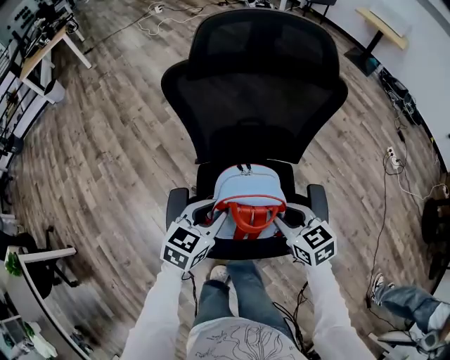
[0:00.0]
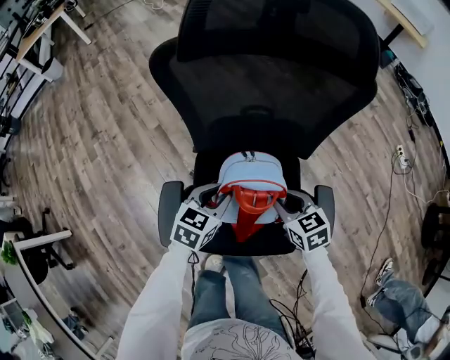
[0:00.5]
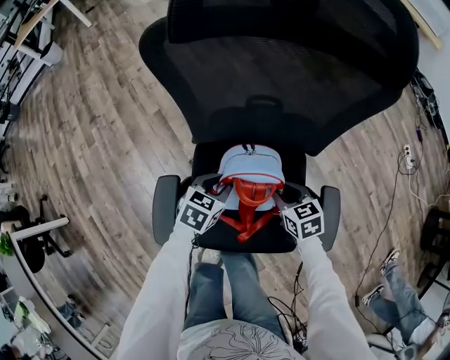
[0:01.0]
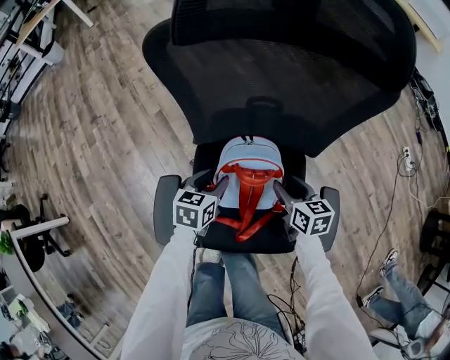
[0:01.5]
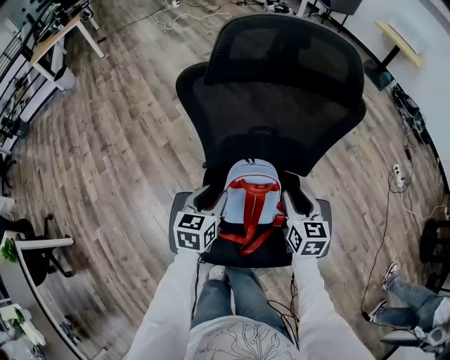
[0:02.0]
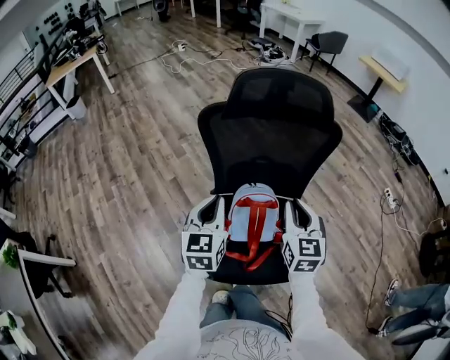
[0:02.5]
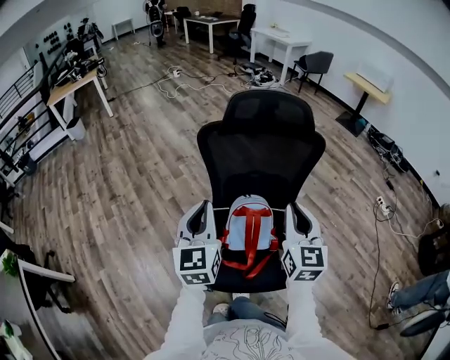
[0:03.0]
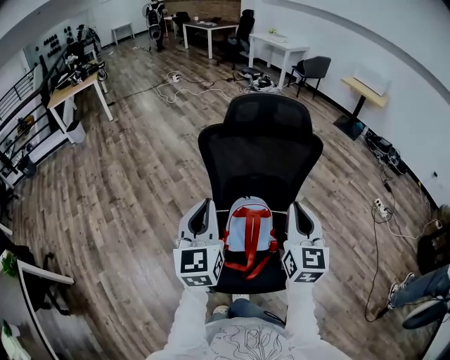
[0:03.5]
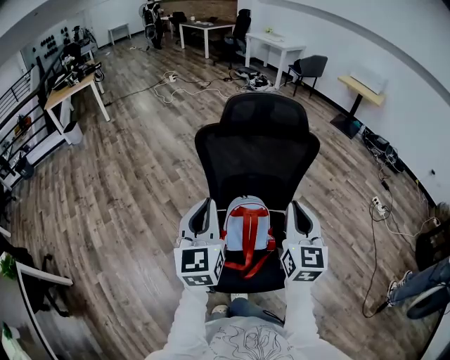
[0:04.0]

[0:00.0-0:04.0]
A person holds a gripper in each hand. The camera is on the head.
0:00.0 to 0:02.0: The two grippers go approximately 10 cm forward. The right gripper goes downward and returns, some 20 cm each way, and turns by roughly 30 degrees. Meanwhile the left gripper reaches some 20 cm downward, then returns, and turns by some 20 degrees.
0:02.0 to 0:04.0: The right gripper travels upward and backward by about 30 cm, turns by approximately 30 degrees, and closes, while the left gripper shifts roughly 30 cm upward, points its fingers roughly 30 degrees further upward, and closes its fingers.

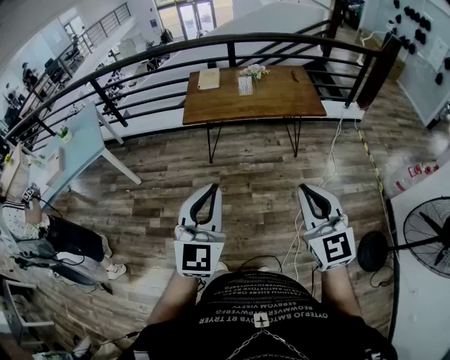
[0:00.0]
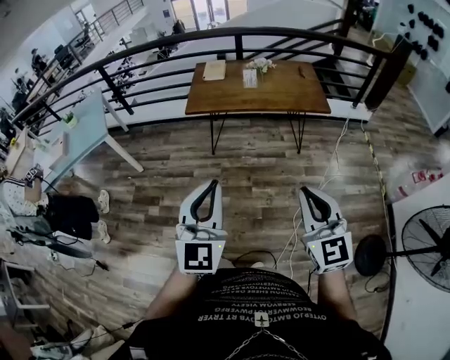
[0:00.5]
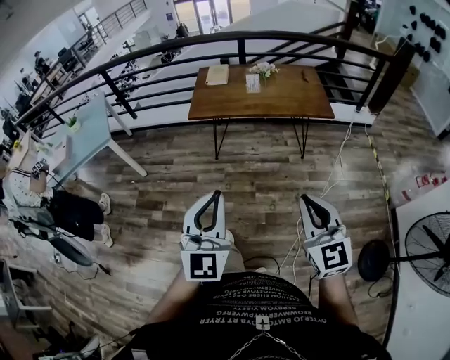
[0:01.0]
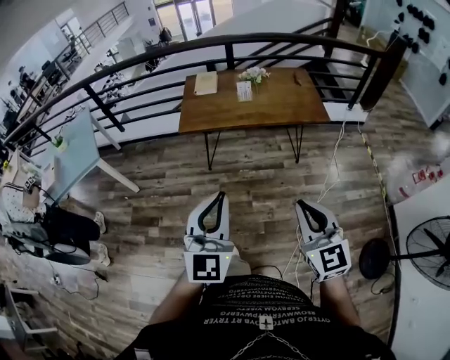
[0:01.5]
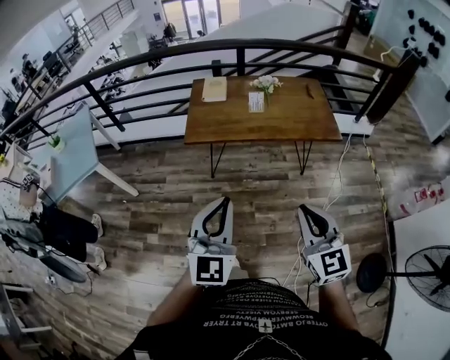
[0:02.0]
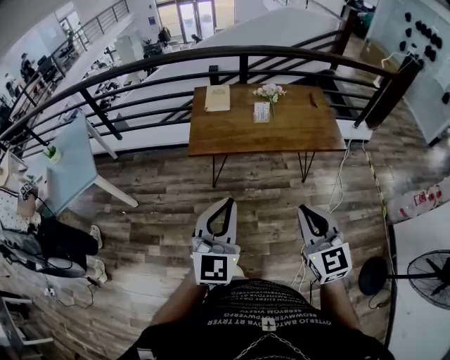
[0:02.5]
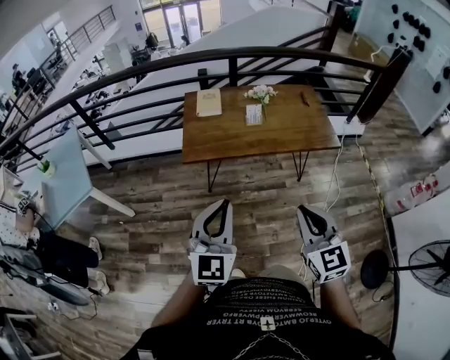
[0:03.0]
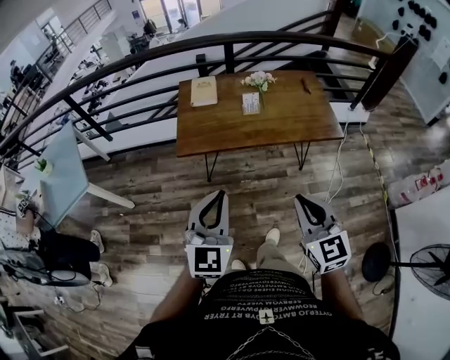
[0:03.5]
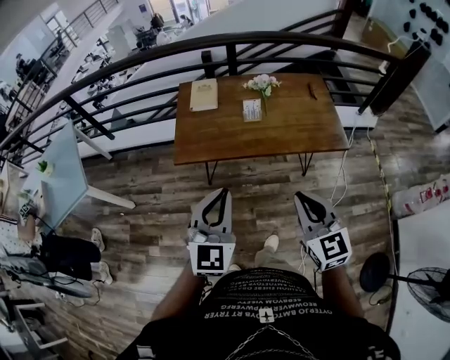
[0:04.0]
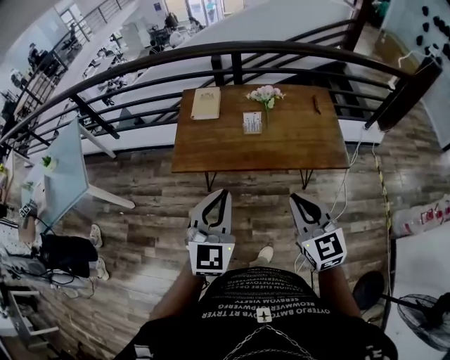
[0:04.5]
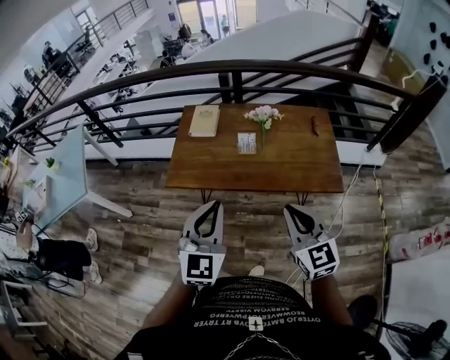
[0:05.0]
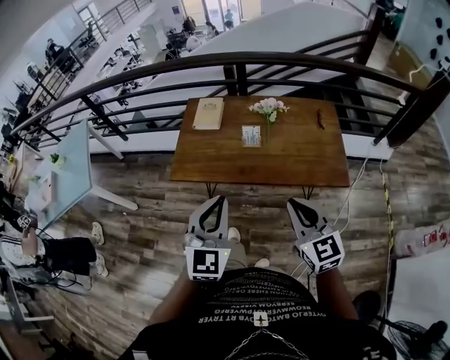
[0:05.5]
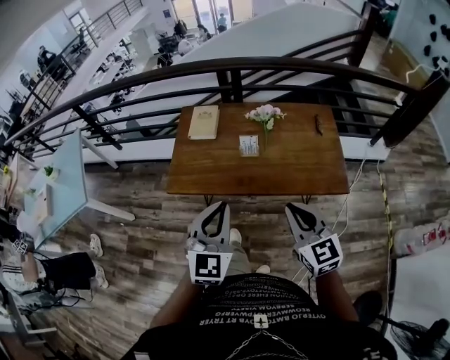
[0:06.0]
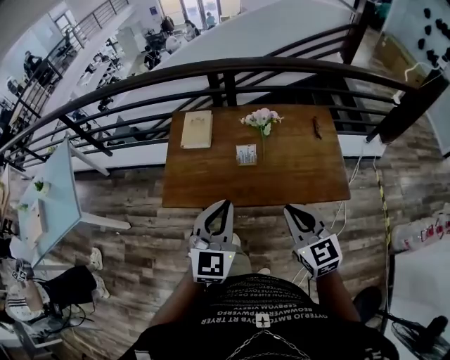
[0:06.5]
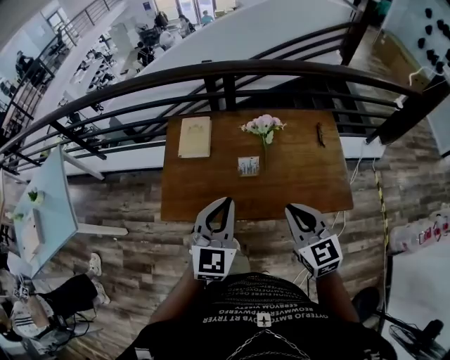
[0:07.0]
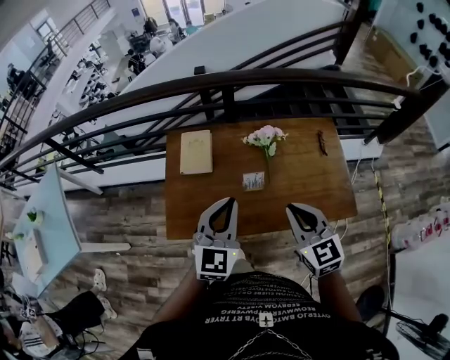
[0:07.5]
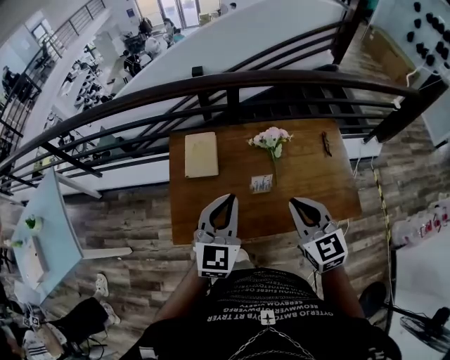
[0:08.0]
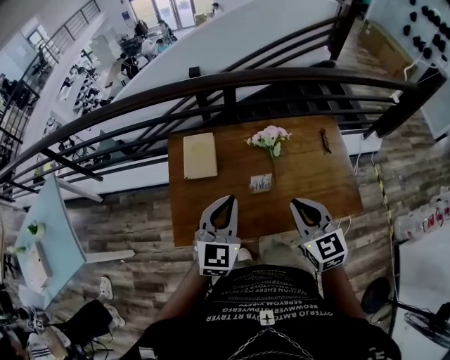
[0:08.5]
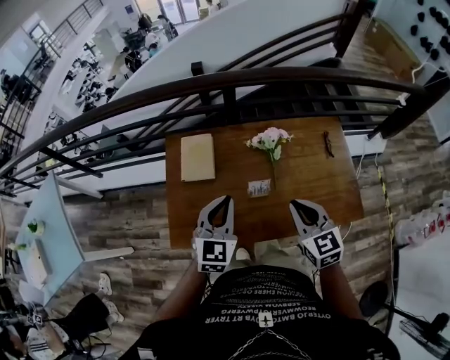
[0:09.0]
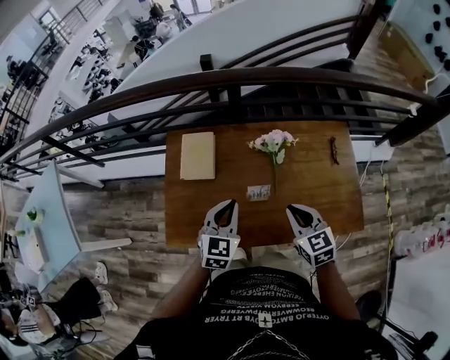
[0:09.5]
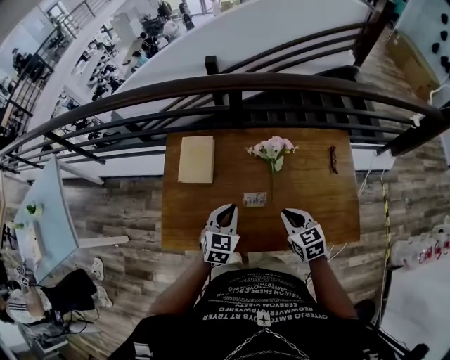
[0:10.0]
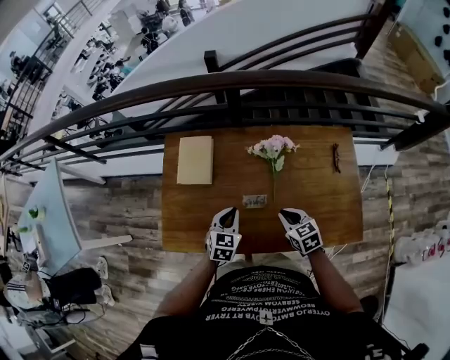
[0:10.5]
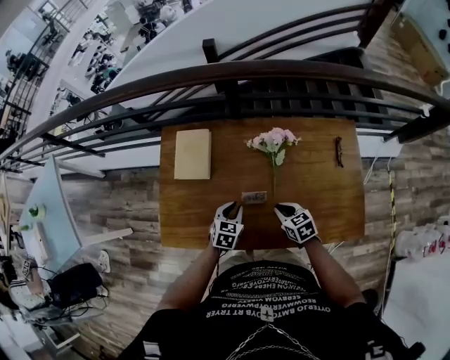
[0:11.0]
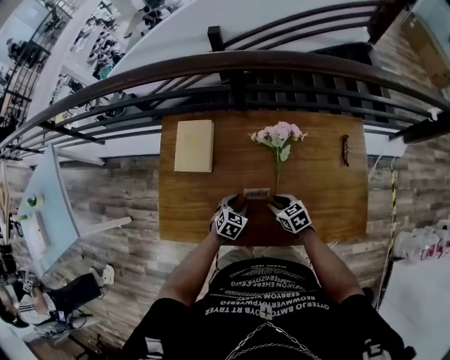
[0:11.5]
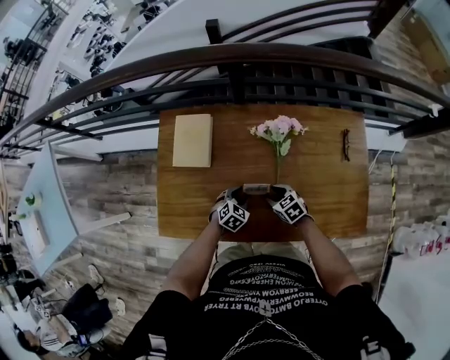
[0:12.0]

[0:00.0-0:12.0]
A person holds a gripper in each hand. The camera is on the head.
0:00.0 to 0:02.0: Both grippers travel together forward, approximately 20 cm.
0:02.0 to 0:04.0: Both grippers travel together forward, about 20 cm.
0:04.0 to 0:06.0: The grippers both shift forward and to the right by approximately 15 cm.
0:06.0 to 0:08.0: The two grippers go approximately 25 cm forward.
0:08.0 to 0:10.0: Both grippers move downward, approximately 20 cm. The left gripper rotates some 20 degrees. The right gripper turns by some 20 degrees.
0:10.0 to 0:12.0: The grippers both shift downward by about 20 cm. The right gripper turns by some 20 degrees, and opens up; the left gripper turns by roughly 30 degrees, and opens.

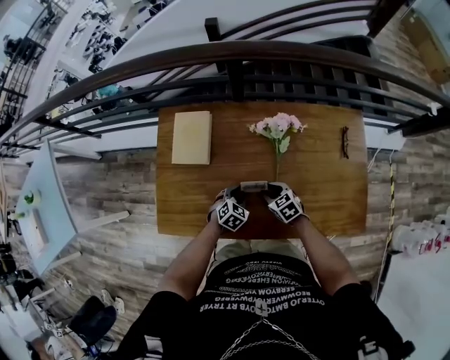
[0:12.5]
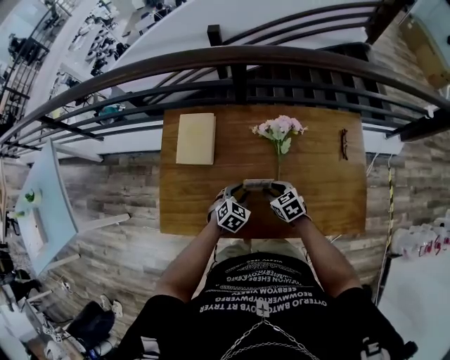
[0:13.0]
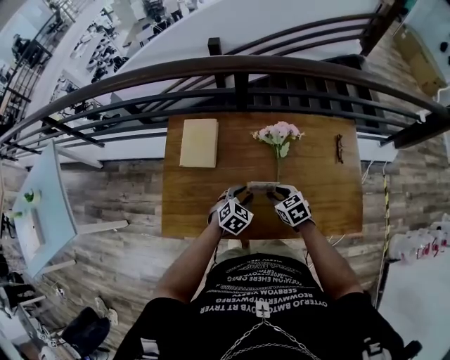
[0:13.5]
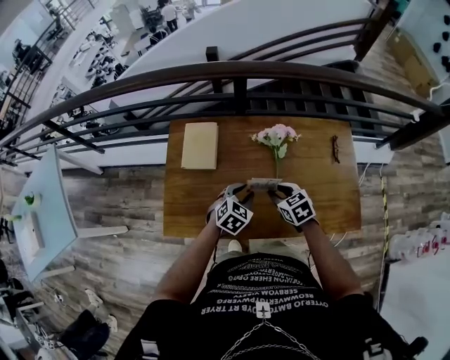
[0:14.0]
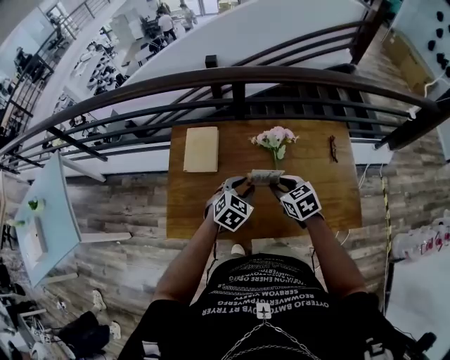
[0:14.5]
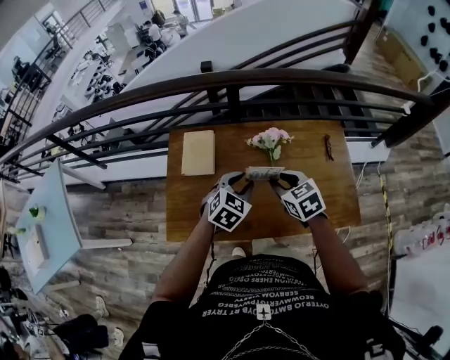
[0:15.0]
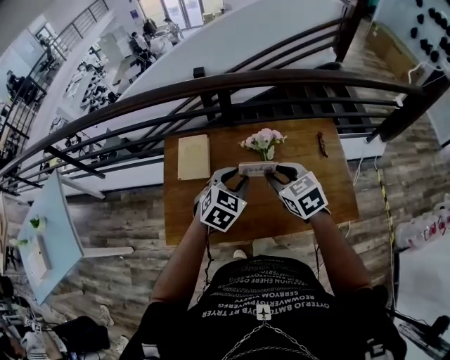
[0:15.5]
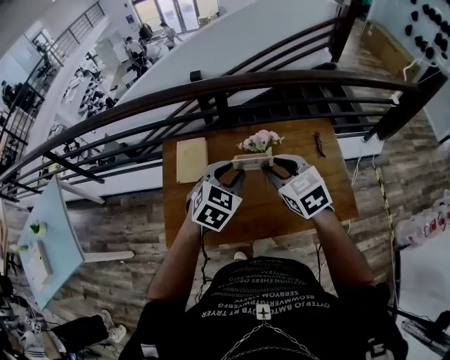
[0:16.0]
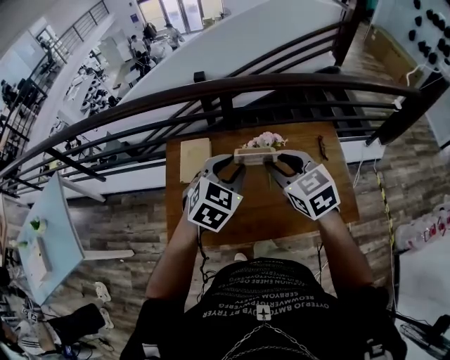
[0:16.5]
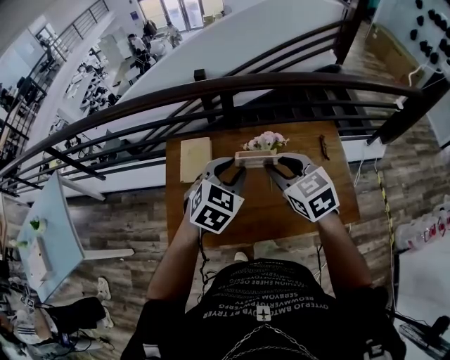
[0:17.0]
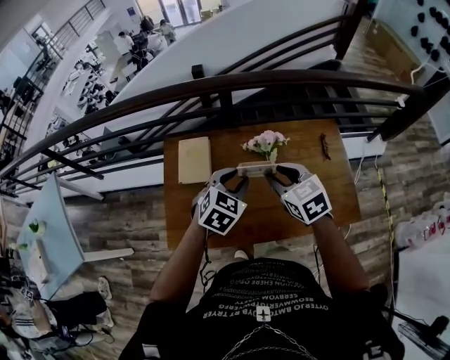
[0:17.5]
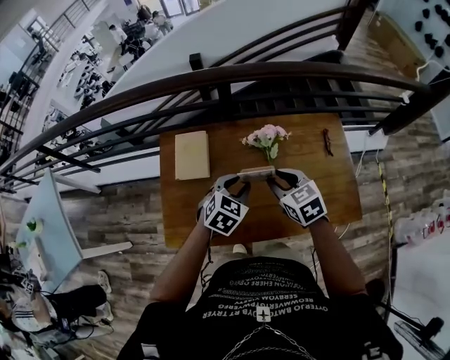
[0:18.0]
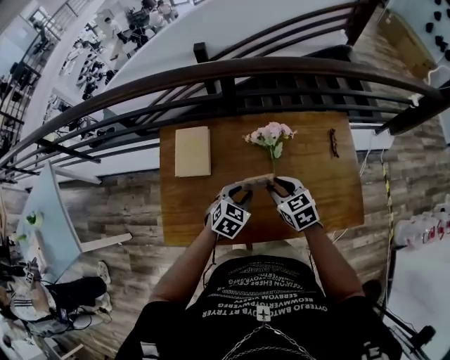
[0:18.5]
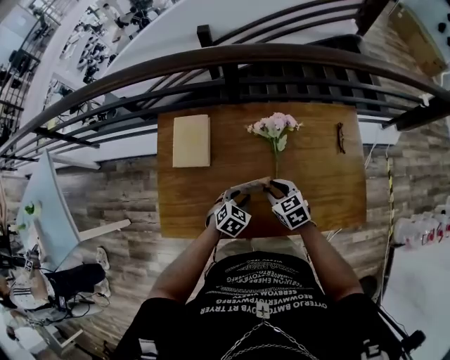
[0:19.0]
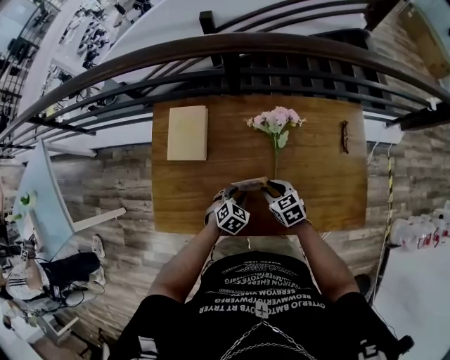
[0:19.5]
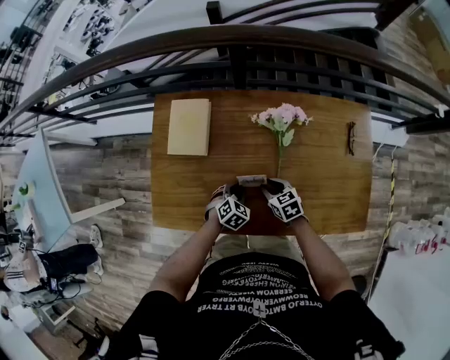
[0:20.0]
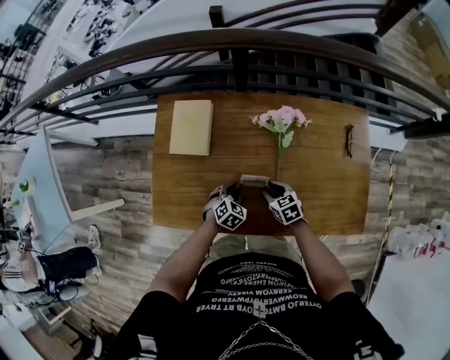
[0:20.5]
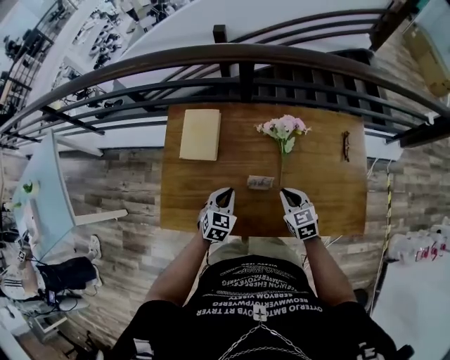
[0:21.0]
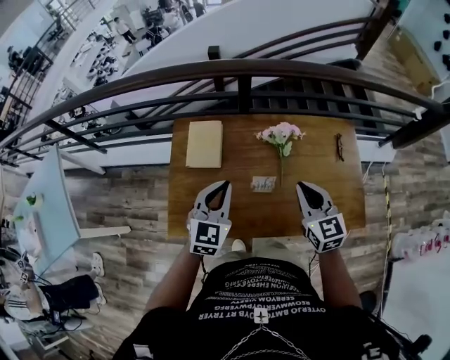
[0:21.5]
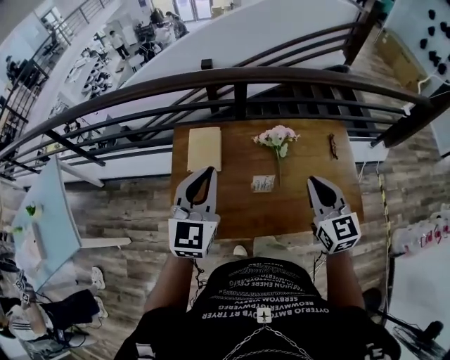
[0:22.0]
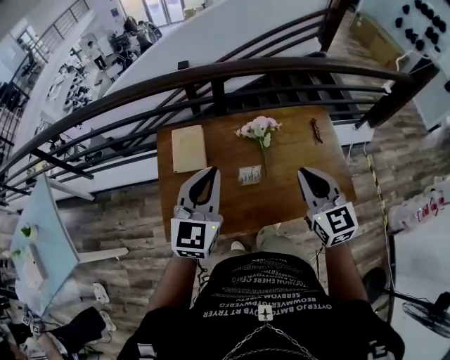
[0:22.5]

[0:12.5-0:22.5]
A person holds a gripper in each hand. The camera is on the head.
0:12.5 to 0:14.5: Both grippers move upward, about 20 cm.
0:14.5 to 0:16.5: The grippers both shift upward by approximately 20 cm.
0:16.5 to 0:18.5: The grippers both shift downward by some 25 cm.
0:18.5 to 0:20.5: The grippers both shift downward by approximately 20 cm.
0:20.5 to 0:22.5: The grippers both shift upward by about 40 cm. The right gripper tilts its fingers roughly 40 degrees upward, and closes, while the left gripper points its fingers roughly 50 degrees further upward, and closes its fingers.

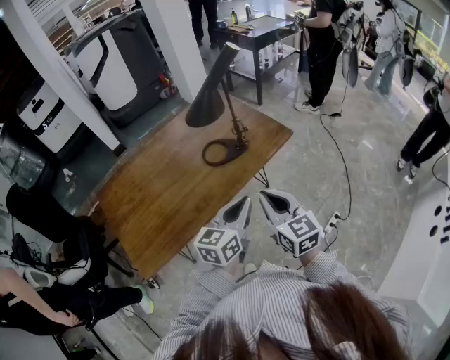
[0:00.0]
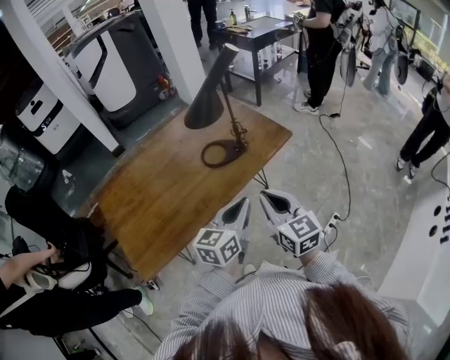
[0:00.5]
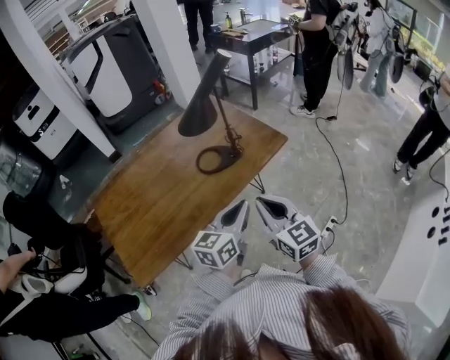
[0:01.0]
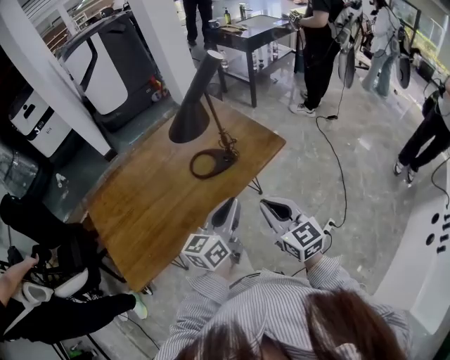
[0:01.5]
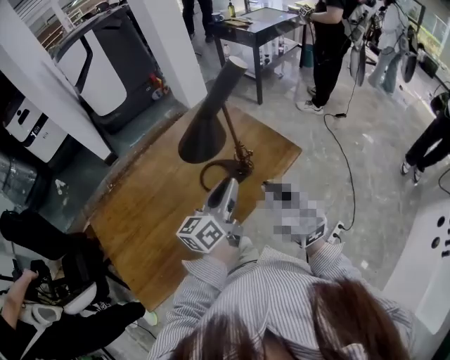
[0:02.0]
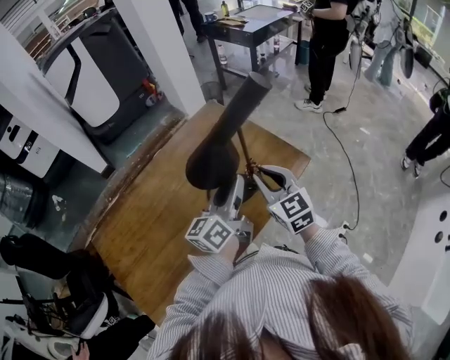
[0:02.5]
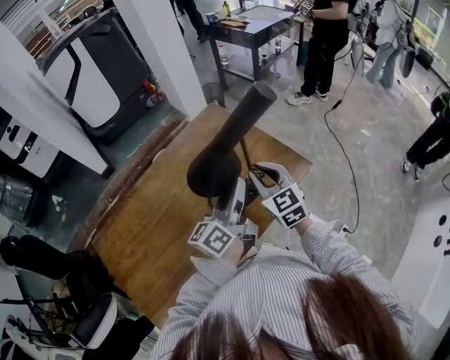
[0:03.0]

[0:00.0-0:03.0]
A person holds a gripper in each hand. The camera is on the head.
0:00.0 to 0:01.5: The left gripper goes roughly 5 cm forward, while the right gripper shifts by about 5 cm.
0:01.5 to 0:03.0: Both grippers travel together forward, some 25 cm. The left gripper swivels about 20 degrees, and opens its fingers.
